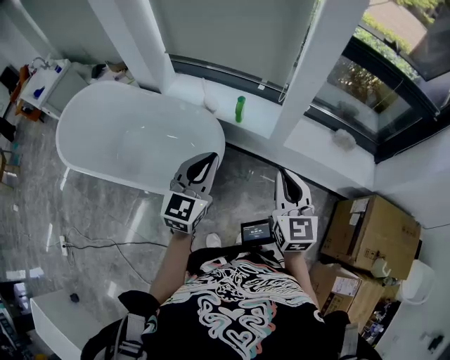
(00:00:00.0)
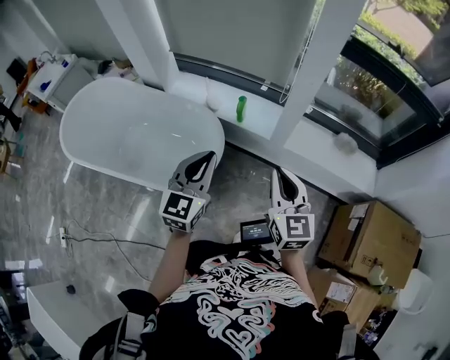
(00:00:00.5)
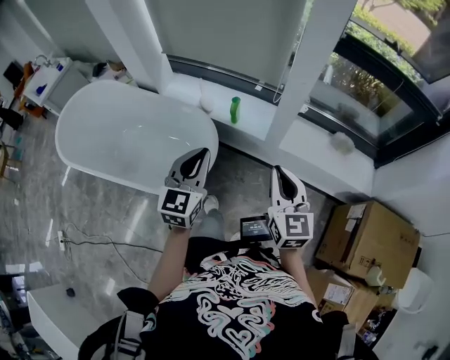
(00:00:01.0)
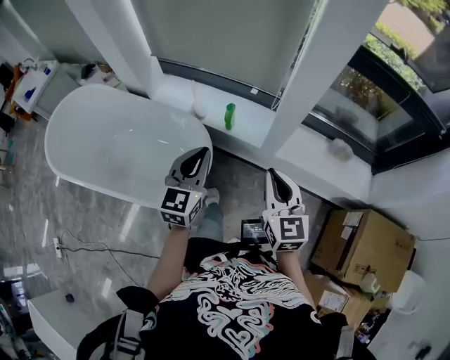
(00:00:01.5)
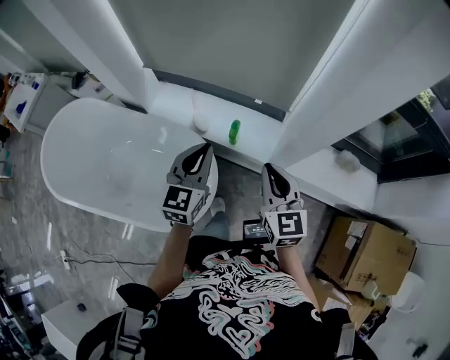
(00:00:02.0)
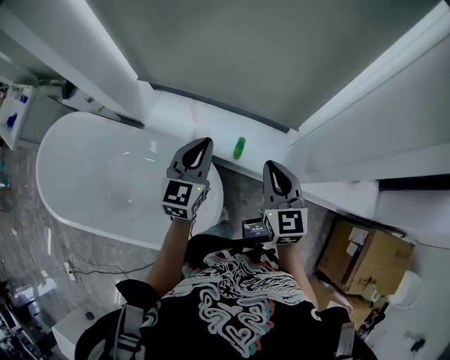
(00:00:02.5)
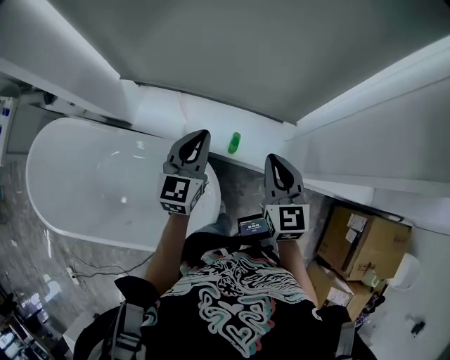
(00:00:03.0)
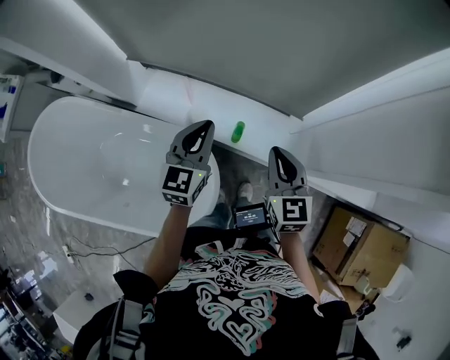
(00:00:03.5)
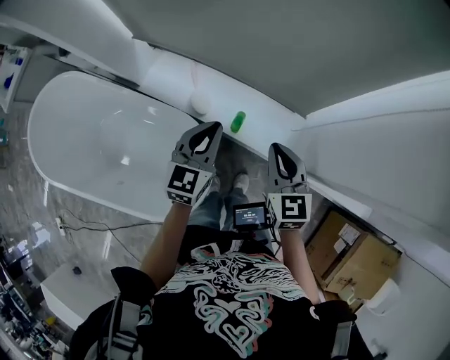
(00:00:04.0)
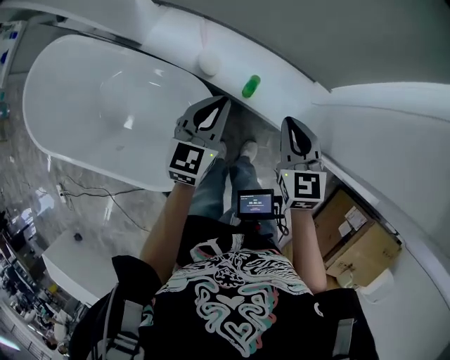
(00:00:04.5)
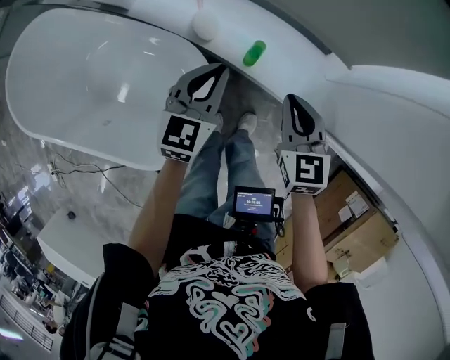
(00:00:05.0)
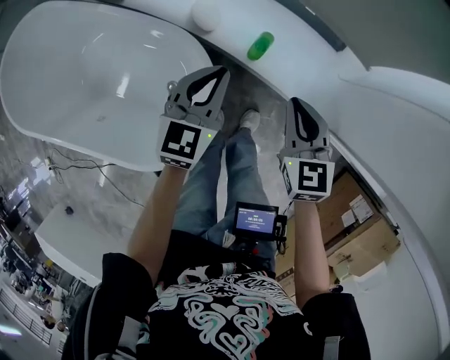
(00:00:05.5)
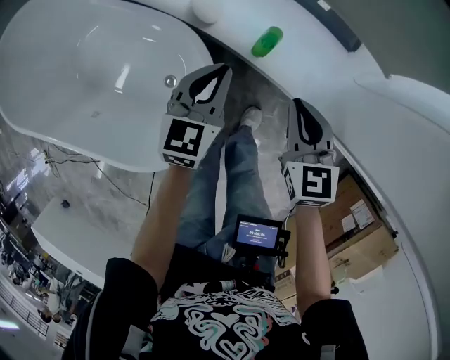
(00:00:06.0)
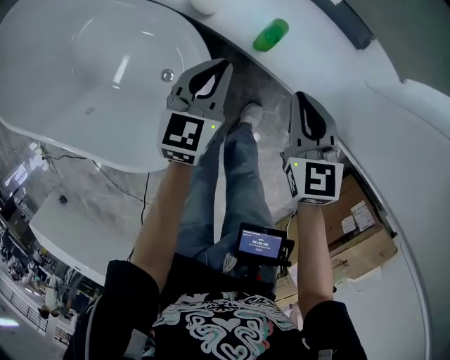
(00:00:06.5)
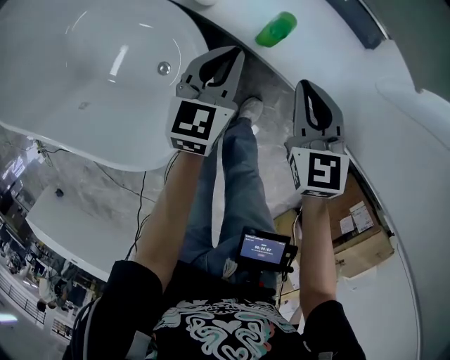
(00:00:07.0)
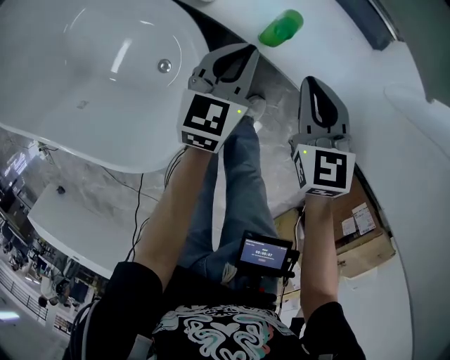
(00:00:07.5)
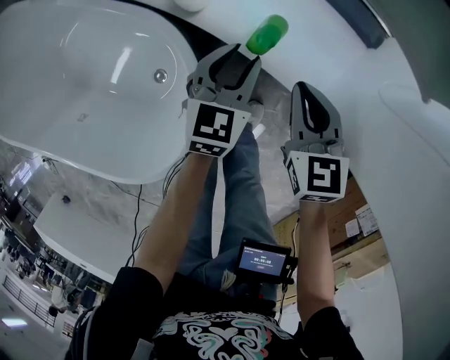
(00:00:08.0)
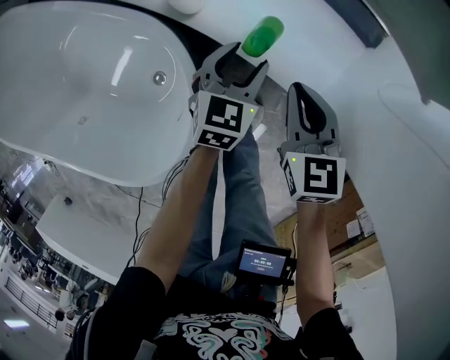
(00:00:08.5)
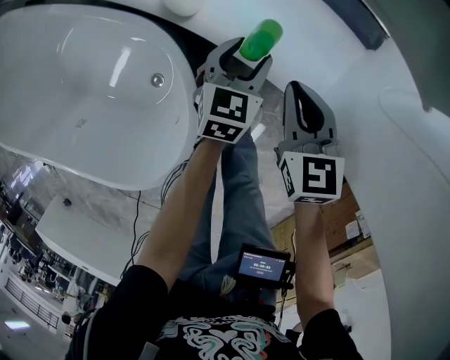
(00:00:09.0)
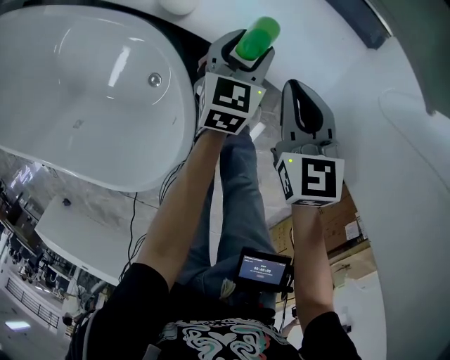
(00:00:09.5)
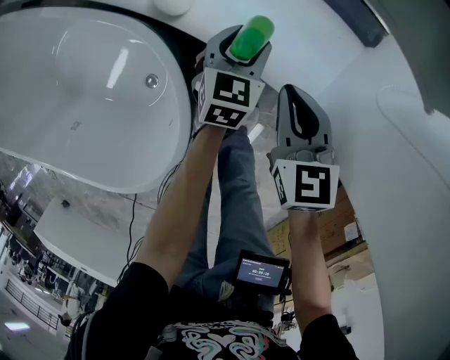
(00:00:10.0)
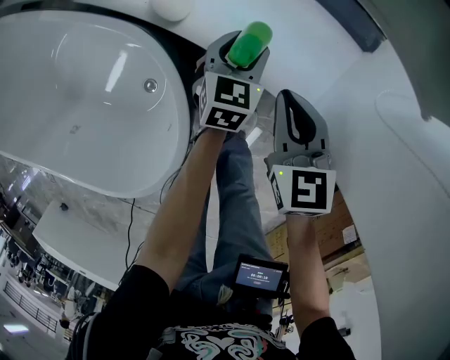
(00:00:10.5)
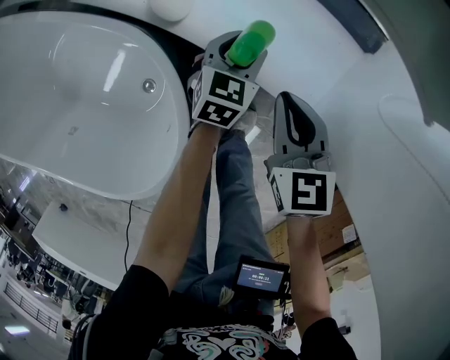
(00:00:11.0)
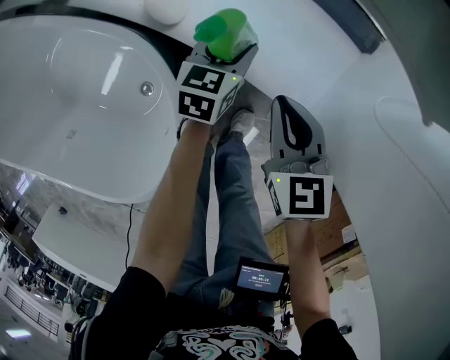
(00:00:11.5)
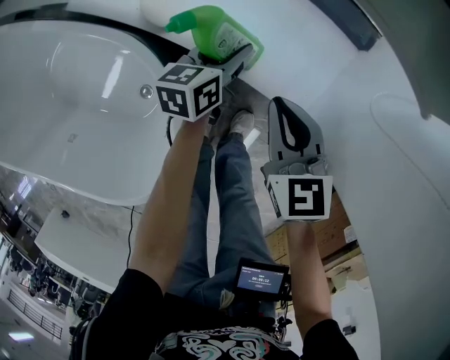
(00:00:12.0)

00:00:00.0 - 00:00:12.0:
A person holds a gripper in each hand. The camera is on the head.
00:00:00.0 - 00:00:02.0: Both grippers move forward, roughly 30 cm.
00:00:02.0 - 00:00:04.0: The two grippers go some 20 cm forward and downward.
00:00:04.0 - 00:00:06.0: Both grippers move downward, roughly 25 cm.
00:00:06.0 - 00:00:08.0: The right gripper moves downward, some 10 cm. The left gripper heads downward and to the right, covering roughly 15 cm, and opens up.
00:00:08.0 - 00:00:10.0: The left gripper travels downward and forward by approximately 10 cm, and opens up.
00:00:10.0 - 00:00:12.0: The left gripper turns by approximately 30 degrees.

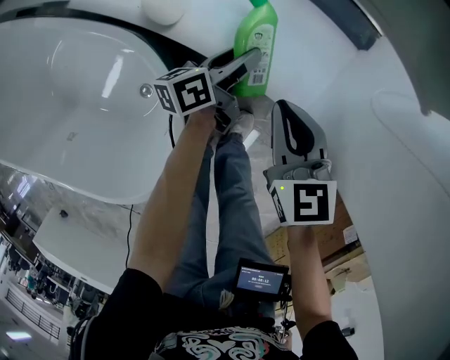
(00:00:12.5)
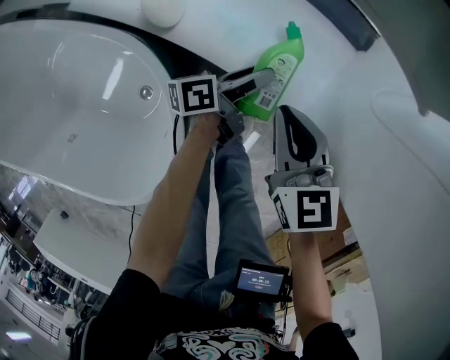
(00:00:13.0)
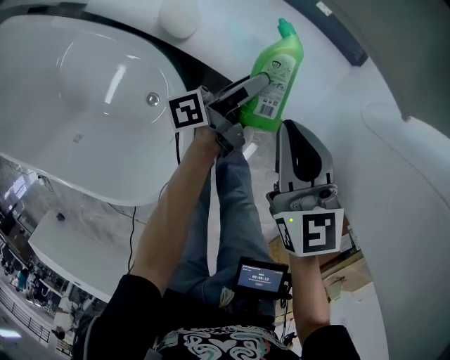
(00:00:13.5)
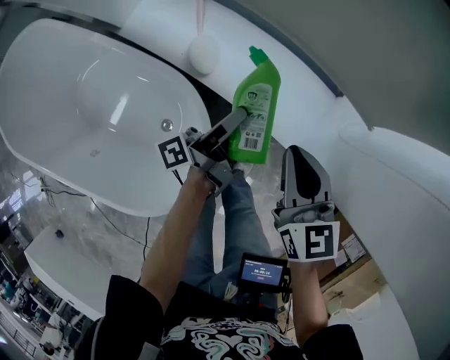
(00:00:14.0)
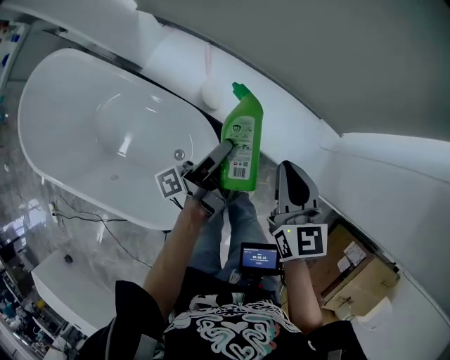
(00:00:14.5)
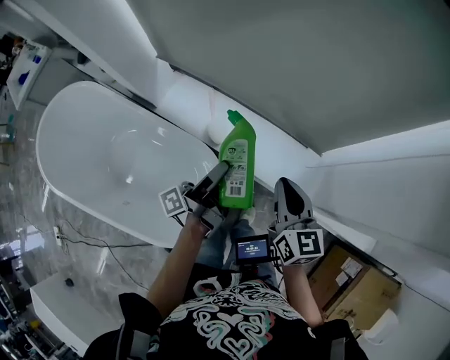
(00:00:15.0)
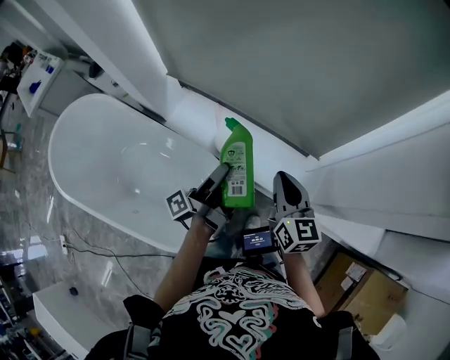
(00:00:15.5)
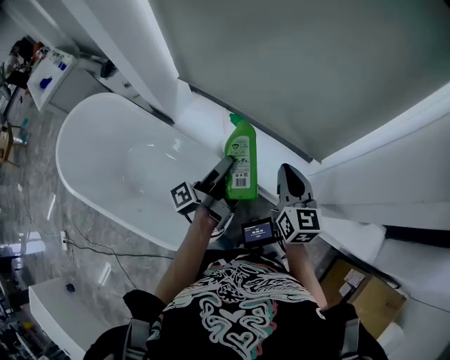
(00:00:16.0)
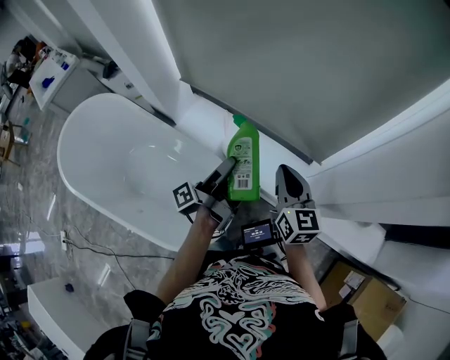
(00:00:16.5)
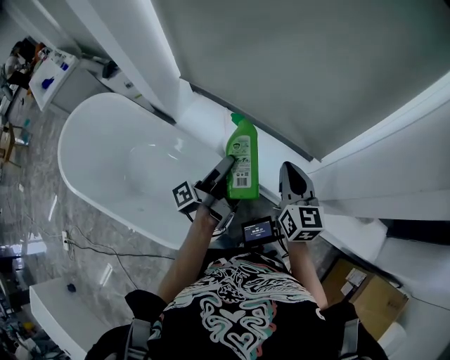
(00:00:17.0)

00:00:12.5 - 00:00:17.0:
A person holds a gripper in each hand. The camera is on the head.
00:00:12.5 - 00:00:14.5: The left gripper shifts about 20 cm upward, and rotates approximately 40 degrees. The right gripper goes some 10 cm upward.
00:00:14.5 - 00:00:17.0: The grippers move only a little.

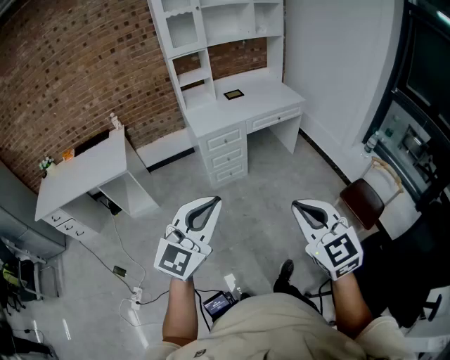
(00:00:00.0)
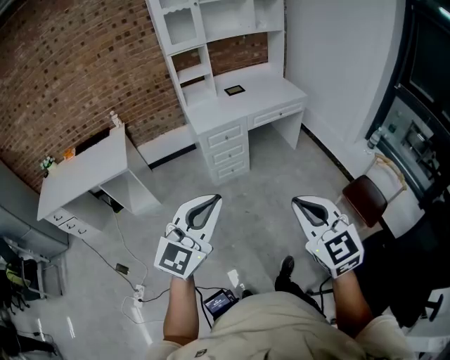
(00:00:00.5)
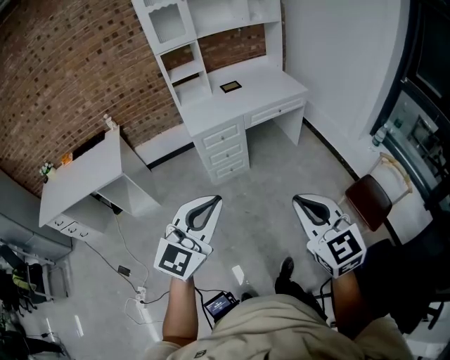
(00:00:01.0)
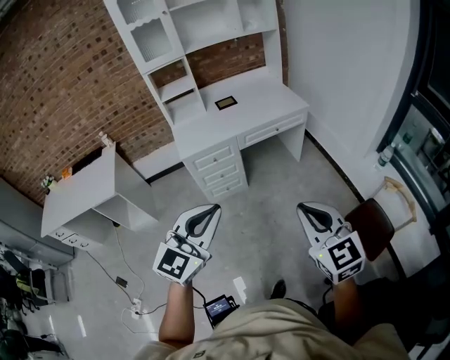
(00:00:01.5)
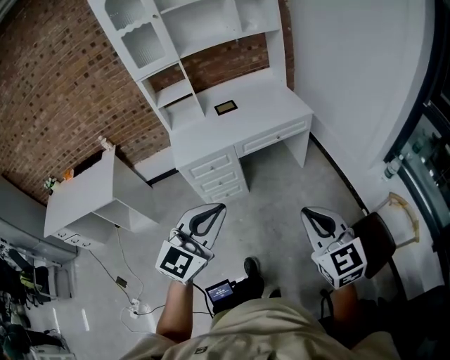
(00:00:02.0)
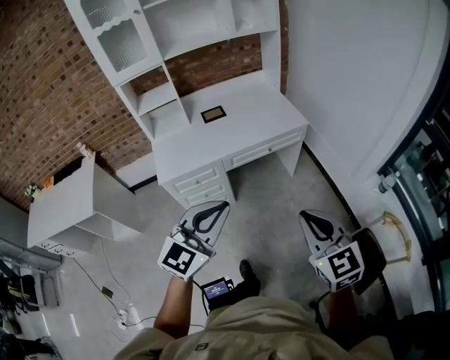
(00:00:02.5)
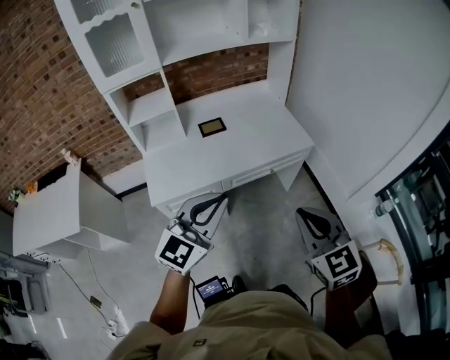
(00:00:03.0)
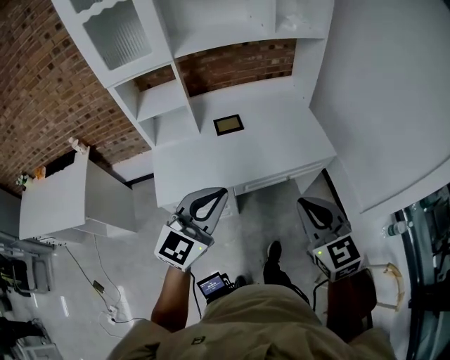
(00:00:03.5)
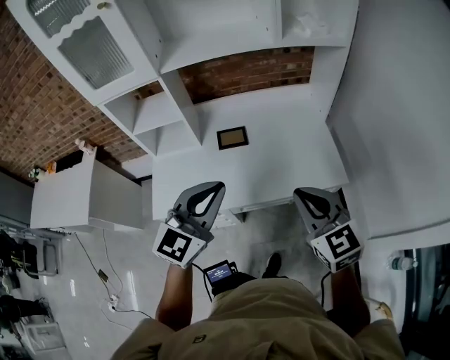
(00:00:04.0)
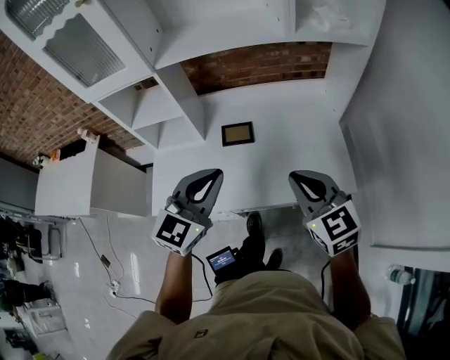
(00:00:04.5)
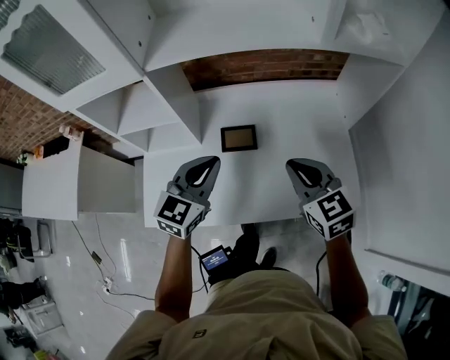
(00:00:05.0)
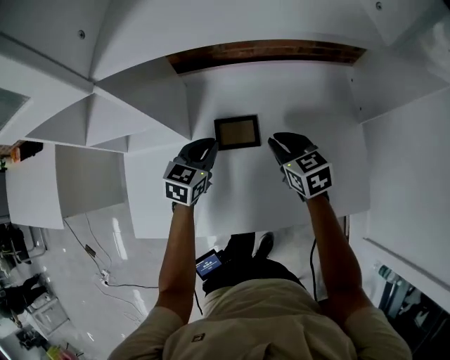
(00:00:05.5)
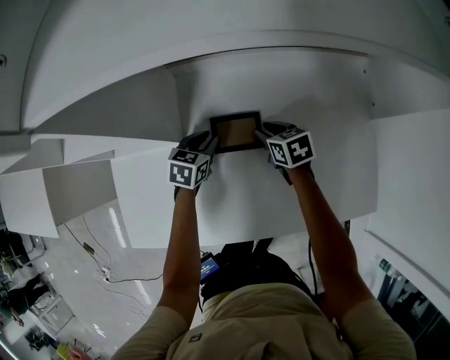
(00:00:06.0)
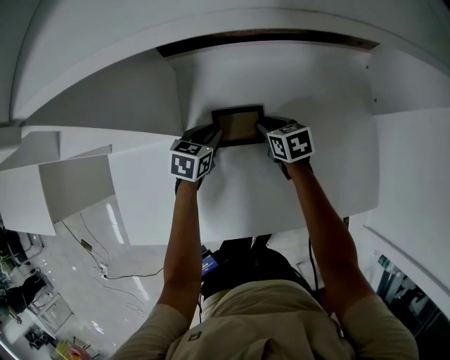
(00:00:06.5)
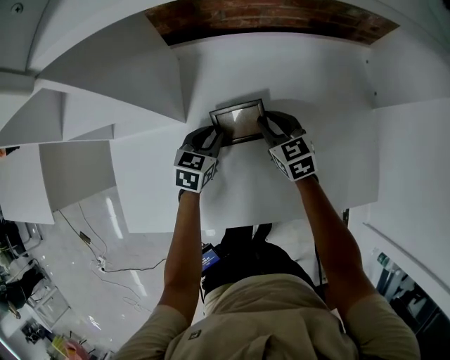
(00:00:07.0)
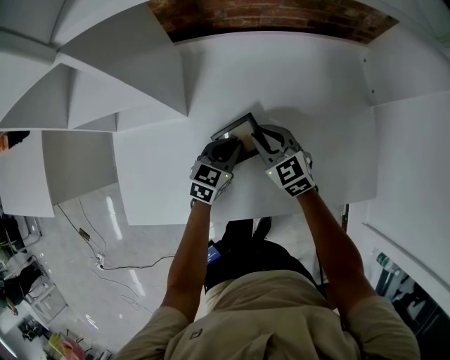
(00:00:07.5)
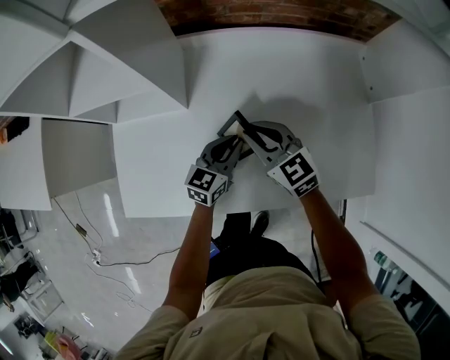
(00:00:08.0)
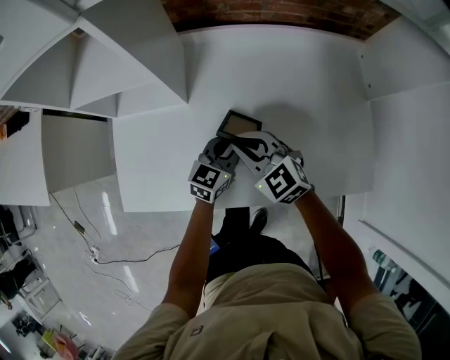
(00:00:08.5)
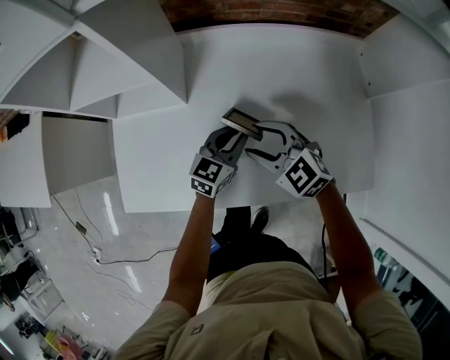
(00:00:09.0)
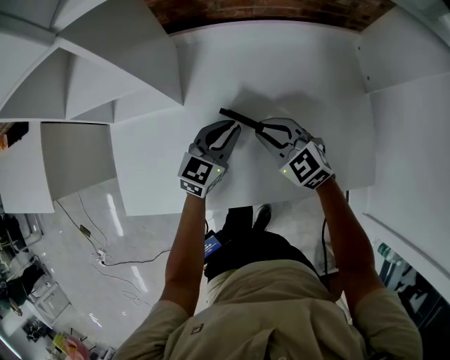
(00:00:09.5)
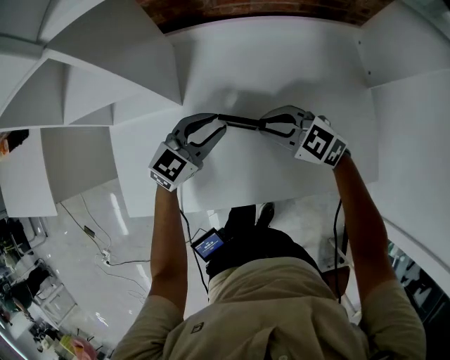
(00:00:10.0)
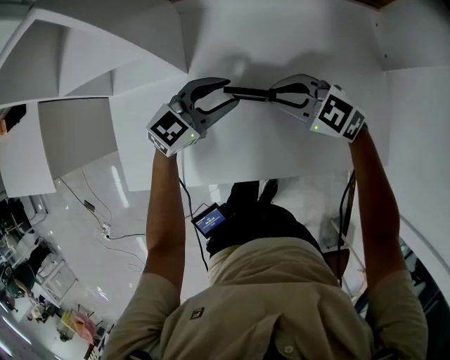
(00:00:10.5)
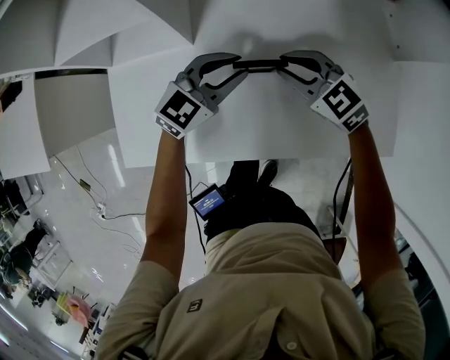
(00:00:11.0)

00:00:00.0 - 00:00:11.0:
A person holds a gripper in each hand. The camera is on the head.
00:00:00.0 - 00:00:02.0: Both grippers are carried forward and to the right, some 50 cm.
00:00:02.0 - 00:00:03.5: The two grippers travel together, forward, approximately 50 cm.
00:00:03.5 - 00:00:05.5: The pair of grippers is taken forward, some 60 cm. The two grippers go about 30 cm downward. The right gripper swivels approximately 30 degrees; the left gripper changes its angle by some 40 degrees.
00:00:05.5 - 00:00:07.5: The right gripper goes about 10 cm downward and to the left, and rotates approximately 20 degrees. The left gripper shifts roughly 10 cm downward and backward.
00:00:07.5 - 00:00:09.0: The left gripper goes approximately 5 cm upward. Meanwhile the right gripper is displaced backward and upward by about 10 cm, turns by approximately 20 degrees, and opens its fingers.
00:00:09.0 - 00:00:11.0: The right gripper shifts by approximately 5 cm, and closes; the left gripper shifts by about 5 cm, and swivels about 20 degrees.
